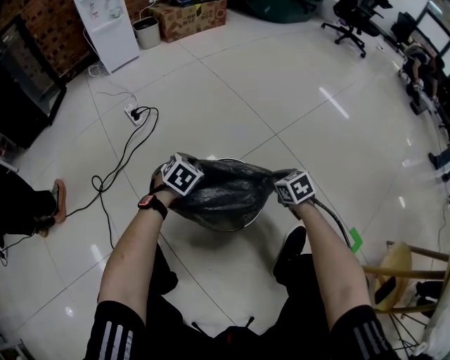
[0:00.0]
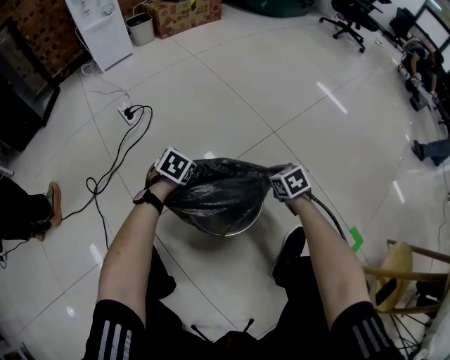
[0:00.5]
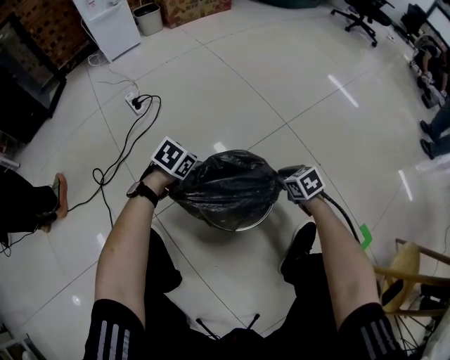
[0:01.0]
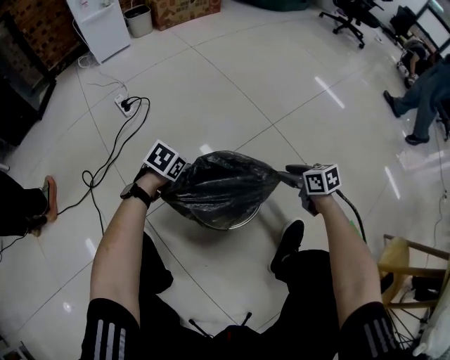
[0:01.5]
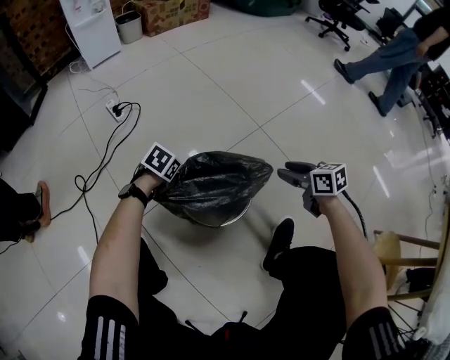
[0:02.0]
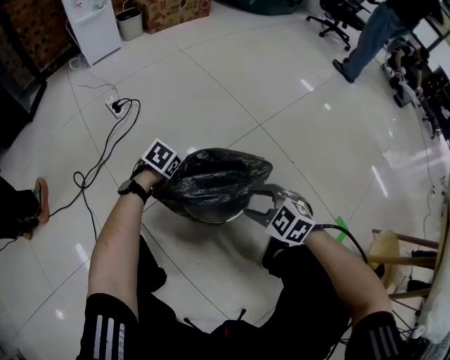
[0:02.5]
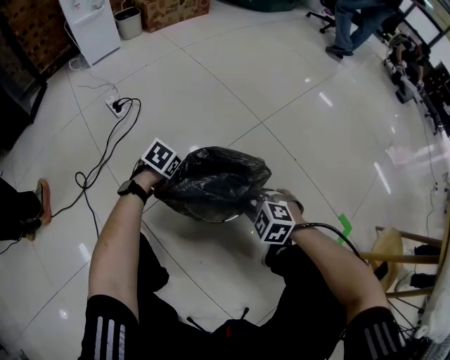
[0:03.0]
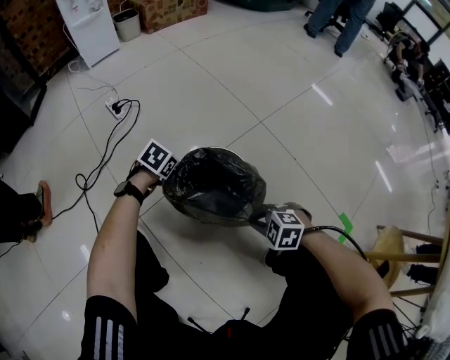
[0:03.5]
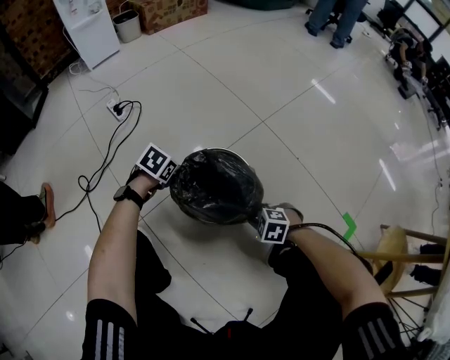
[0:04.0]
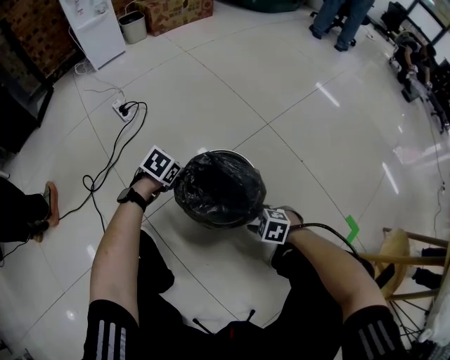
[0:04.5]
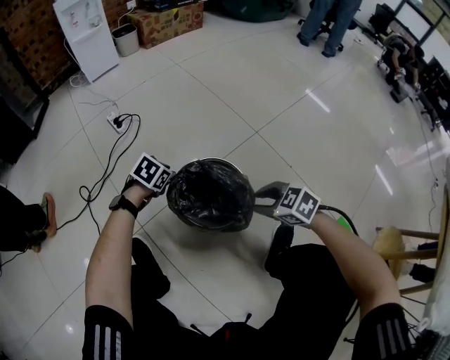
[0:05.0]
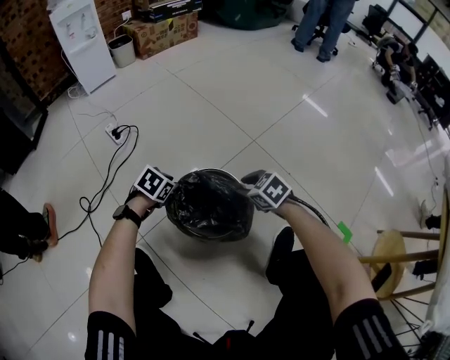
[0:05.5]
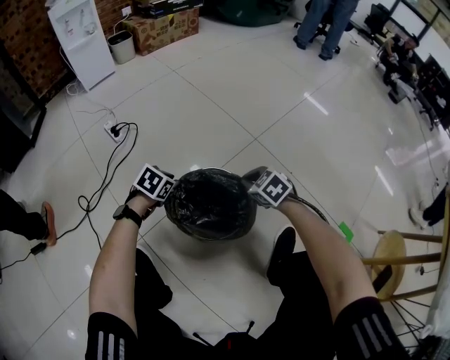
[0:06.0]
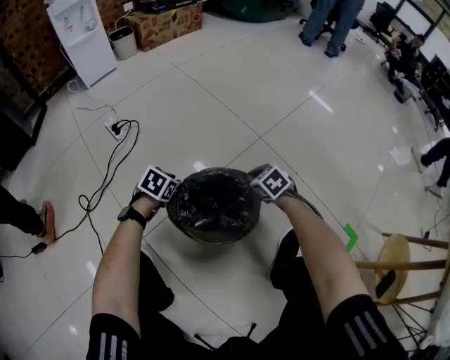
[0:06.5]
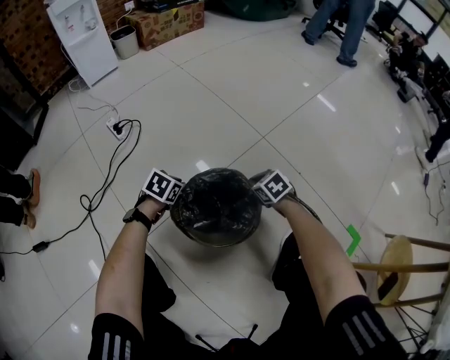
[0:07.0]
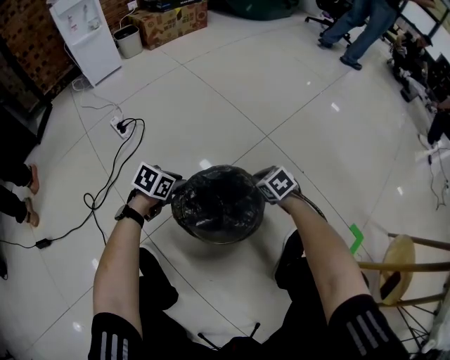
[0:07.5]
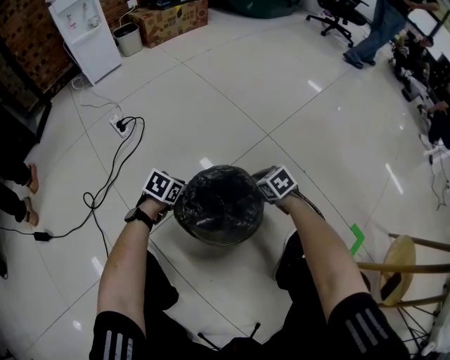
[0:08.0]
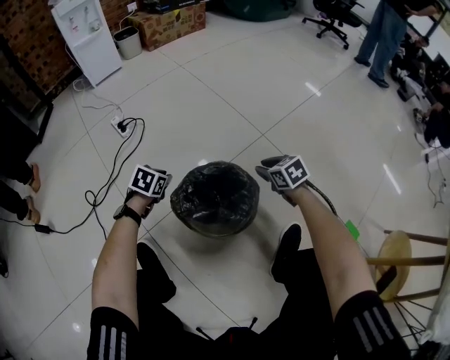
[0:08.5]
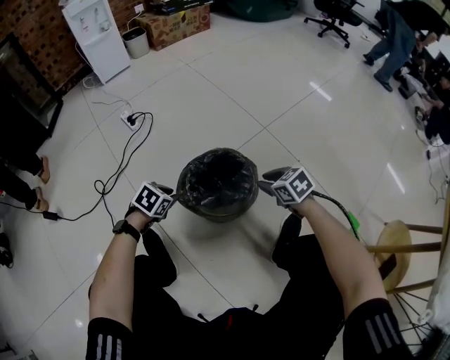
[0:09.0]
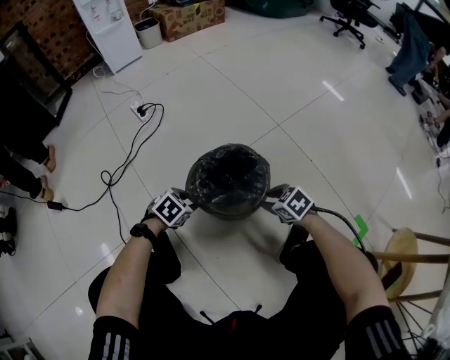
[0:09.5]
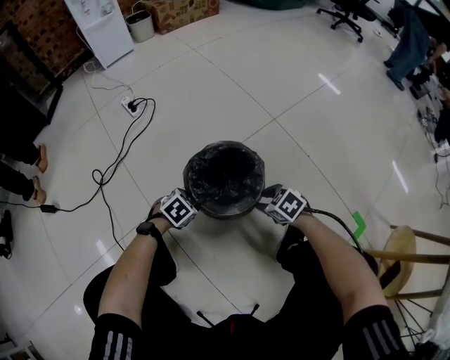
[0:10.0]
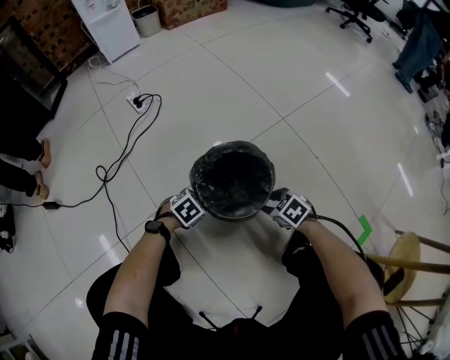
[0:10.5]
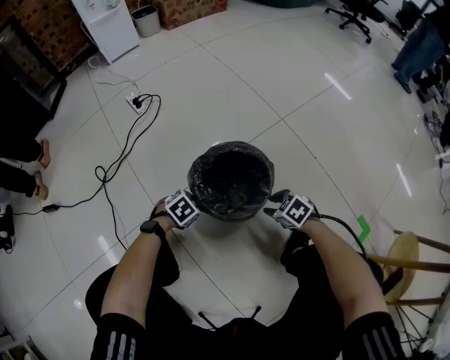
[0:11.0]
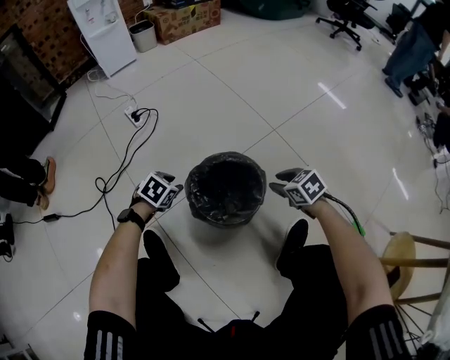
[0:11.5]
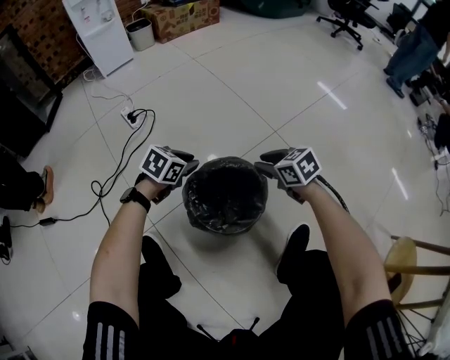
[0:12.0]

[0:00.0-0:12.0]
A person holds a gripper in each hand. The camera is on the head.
0:00.0 to 0:02.0: The left gripper goes approximately 5 cm downward, and swivels roughly 20 degrees; the right gripper heads upward and to the right, covering about 10 cm, changes its angle by roughly 20 degrees, and opens up.
0:02.0 to 0:04.0: The right gripper changes place by roughly 25 cm, rotates around the line of its fingers by approximately 50 degrees, counterclockwise from behind, and closes up.
0:04.0 to 0:06.0: The right gripper moves some 20 cm, turns by approximately 30 degrees, and opens and closes again.
0:06.0 to 0:08.0: Both grippers travel together downward, approximately 5 cm.
0:08.0 to 0:10.0: The left gripper reaches about 10 cm upward, then returns, swivels some 20 degrees, and opens up. The right gripper moves roughly 10 cm upward and comes back, and opens its fingers.
0:10.0 to 0:12.0: The left gripper ends up roughly 20 cm from where it was, and turns by about 20 degrees. Meanwhile the right gripper moves roughly 20 cm, and rotates roughly 20 degrees.

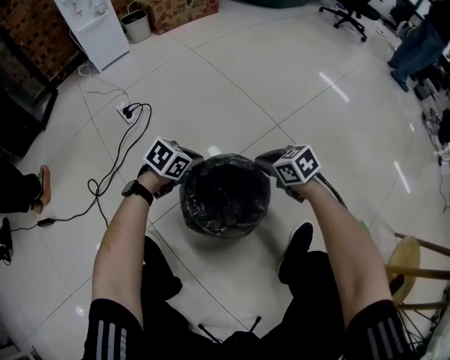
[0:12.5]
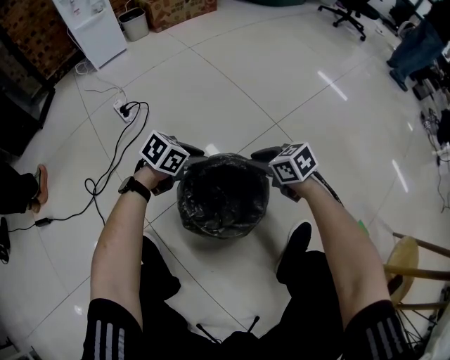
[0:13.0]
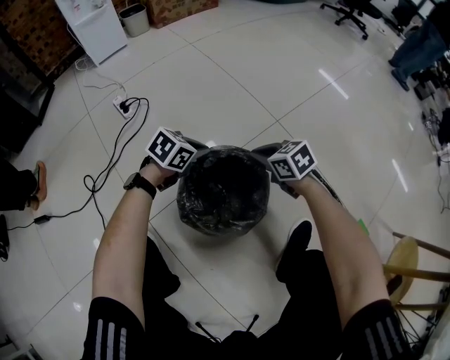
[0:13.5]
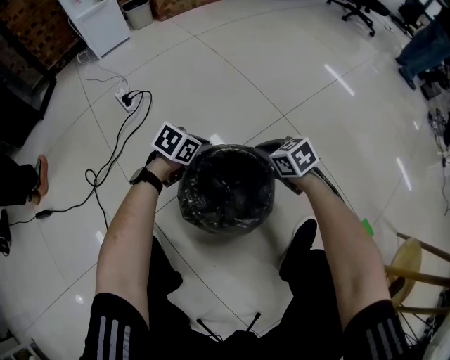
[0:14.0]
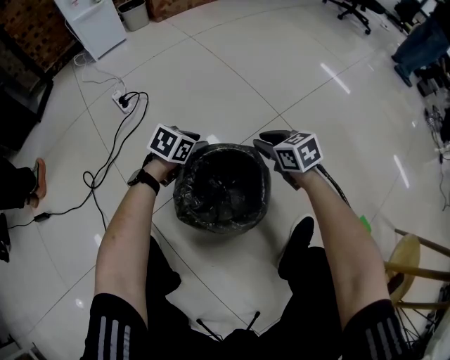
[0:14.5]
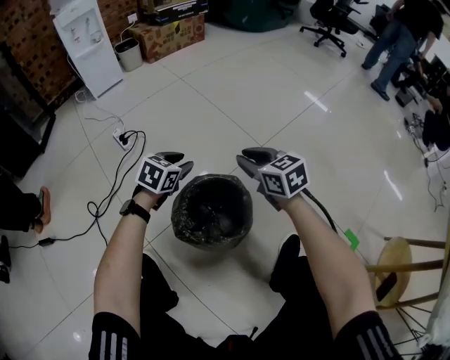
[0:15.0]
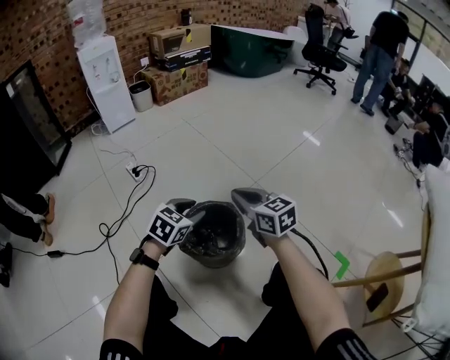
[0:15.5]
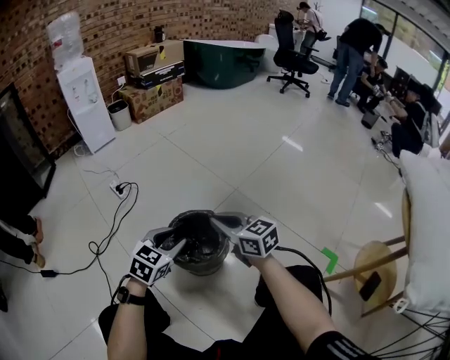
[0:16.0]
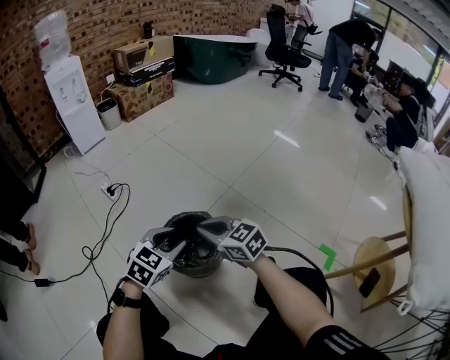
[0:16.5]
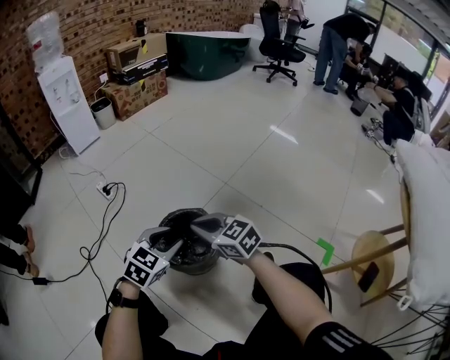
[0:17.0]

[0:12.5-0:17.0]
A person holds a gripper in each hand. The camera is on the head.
0:12.5 to 0:14.5: The left gripper opens, while the right gripper opens its fingers.
0:14.5 to 0:17.0: Both grippers move upward and backward, about 30 cm. The left gripper turns by roughly 30 degrees. The right gripper swivels about 20 degrees, and closes.

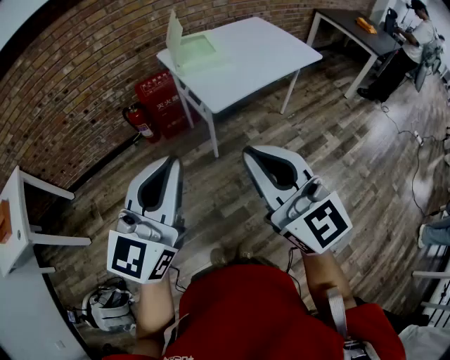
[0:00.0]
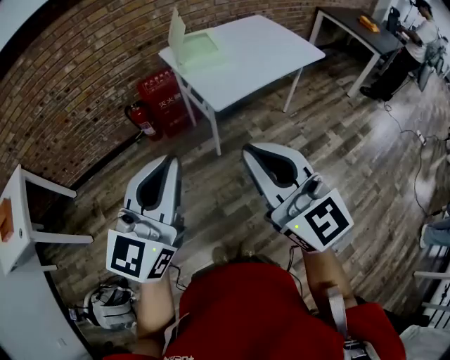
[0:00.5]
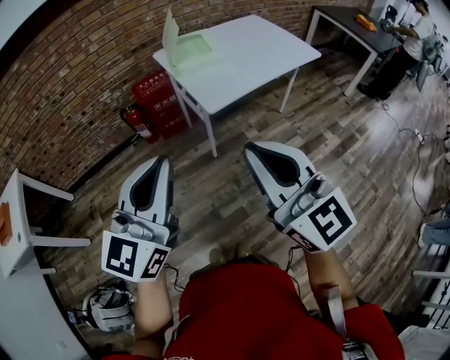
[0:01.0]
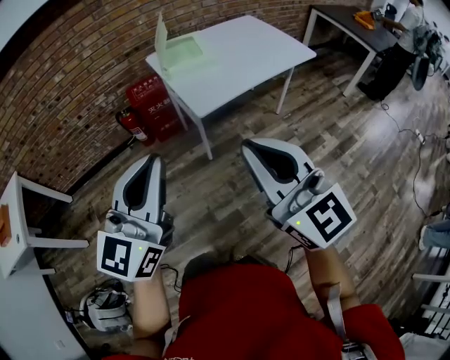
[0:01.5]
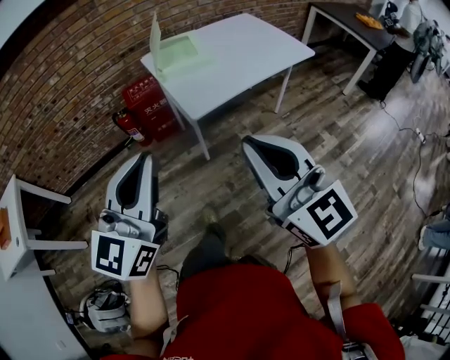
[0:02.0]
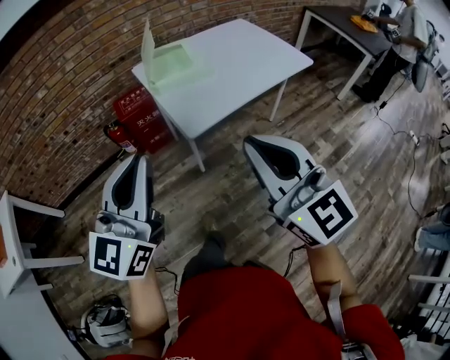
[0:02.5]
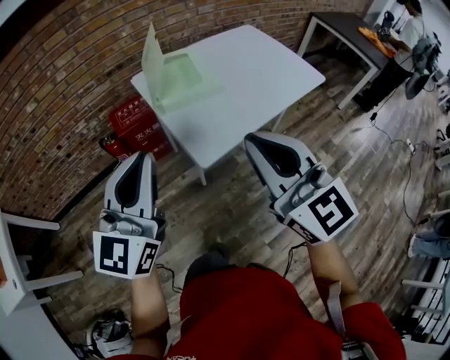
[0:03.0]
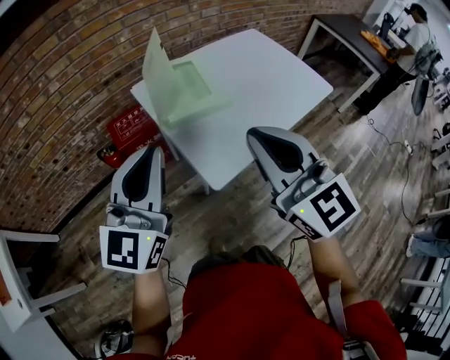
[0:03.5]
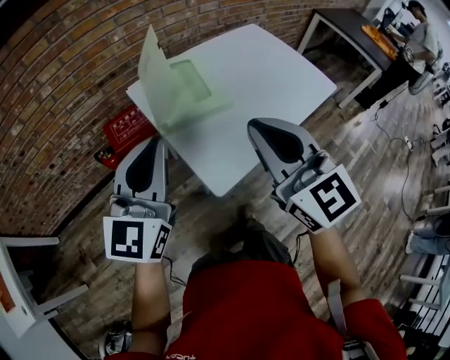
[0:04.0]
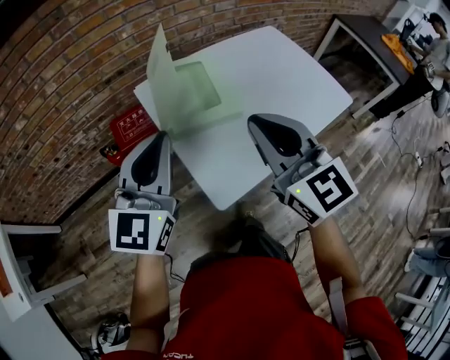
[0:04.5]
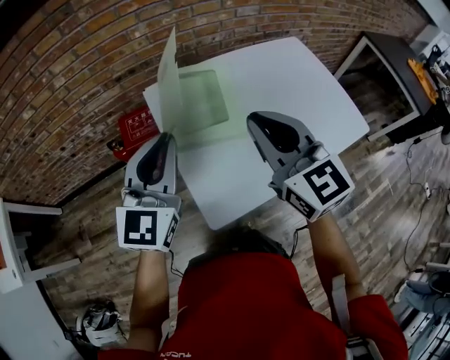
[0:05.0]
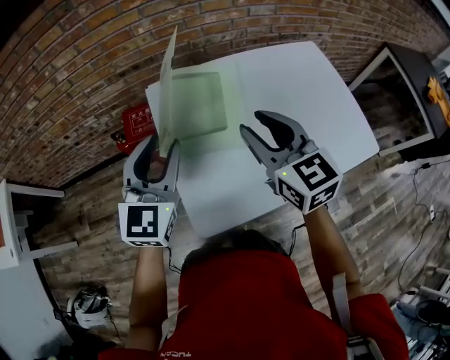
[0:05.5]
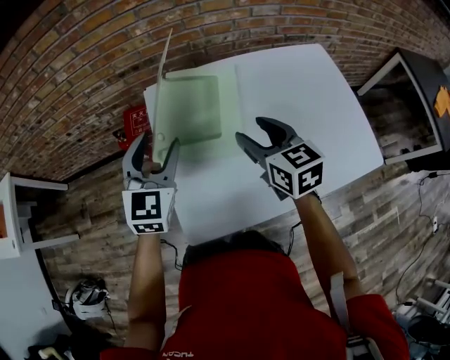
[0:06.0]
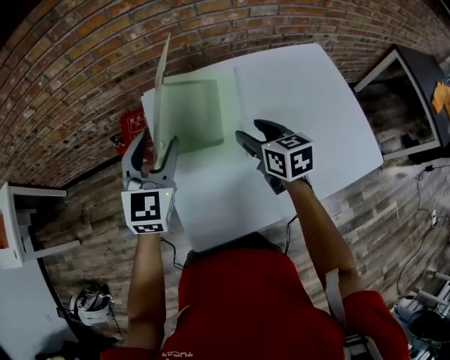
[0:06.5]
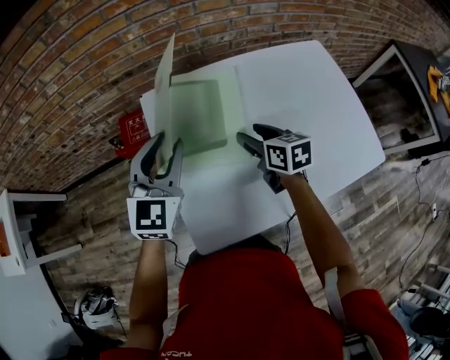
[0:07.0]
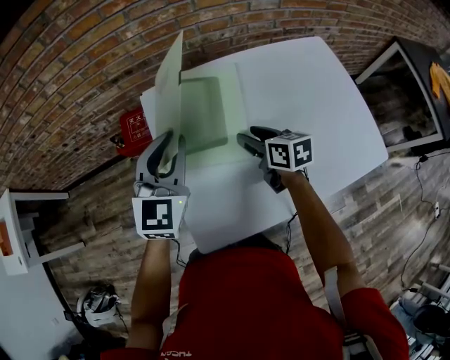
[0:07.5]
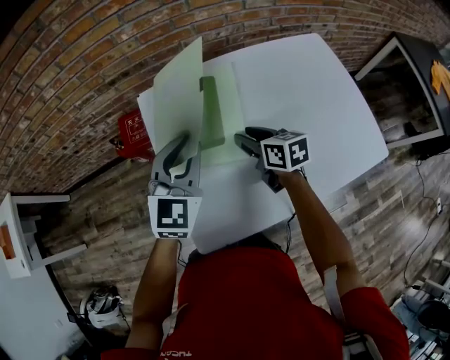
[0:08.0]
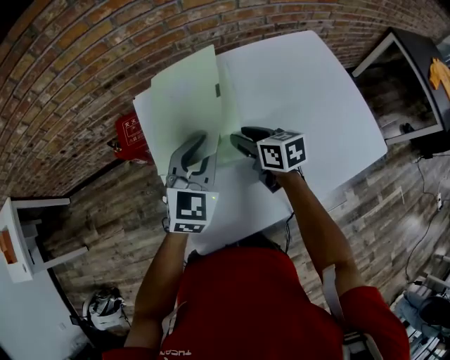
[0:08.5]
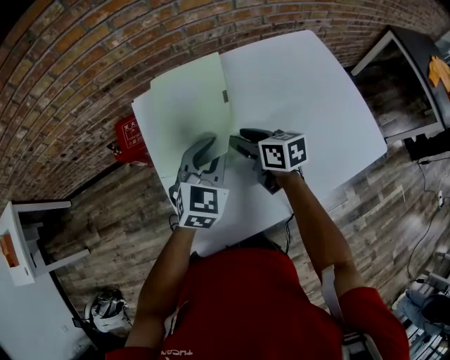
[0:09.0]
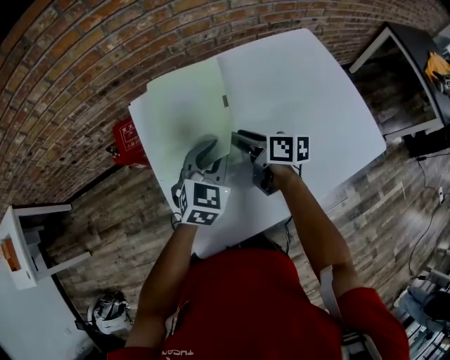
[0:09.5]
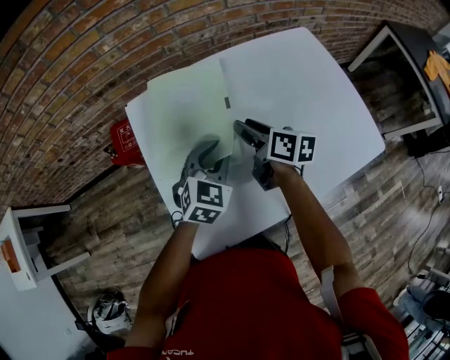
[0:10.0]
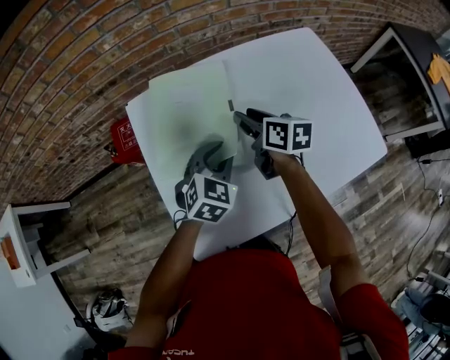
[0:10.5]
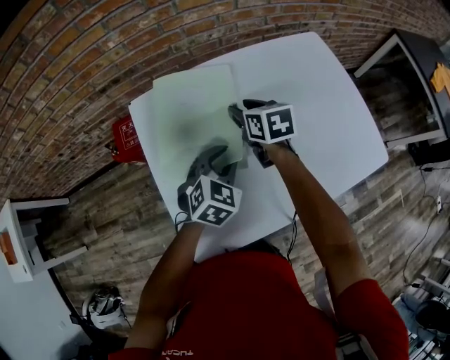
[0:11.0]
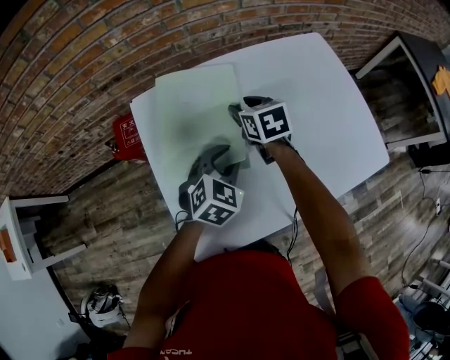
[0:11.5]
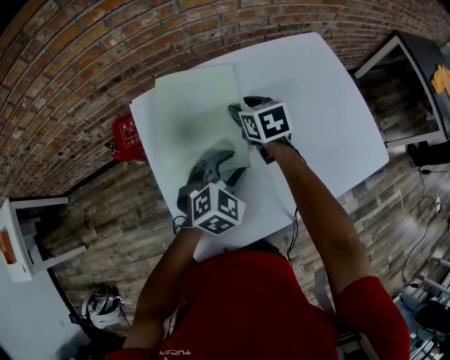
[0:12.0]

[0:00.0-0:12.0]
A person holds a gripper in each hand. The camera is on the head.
0:00.0 to 0:02.0: The left gripper shifts about 5 cm forward and to the right; the right gripper moves to the right, approximately 10 cm.
0:02.0 to 0:04.0: Both grippers travel together forward, some 40 cm.
0:04.0 to 0:06.0: The grippers both shift forward, downward and to the right by some 30 cm. The left gripper swivels approximately 40 degrees, and opens; the right gripper changes its angle by roughly 30 degrees, and opens up.
0:06.0 to 0:08.0: The right gripper shifts roughly 10 cm downward, and turns by roughly 20 degrees; the left gripper travels to the right by approximately 5 cm, and closes up.
0:08.0 to 0:10.0: The left gripper travels downward and to the right by some 15 cm, and rotates roughly 20 degrees. Meanwhile the right gripper changes place by about 5 cm, and turns by some 20 degrees.
0:10.0 to 0:12.0: The right gripper goes about 10 cm forward, and rotates about 40 degrees. Meanwhile the left gripper opens up.
